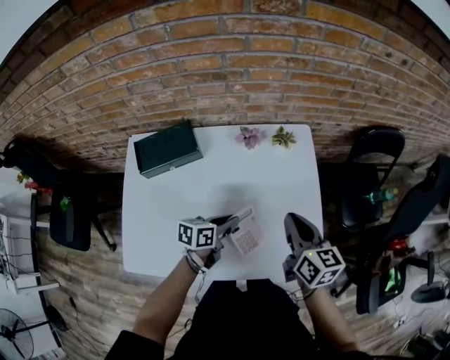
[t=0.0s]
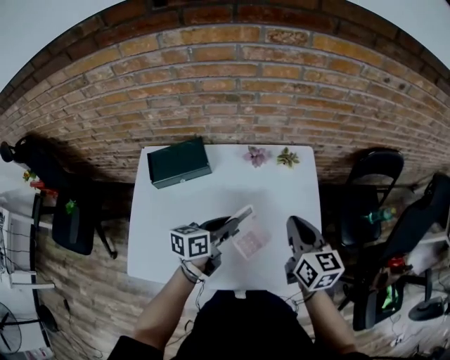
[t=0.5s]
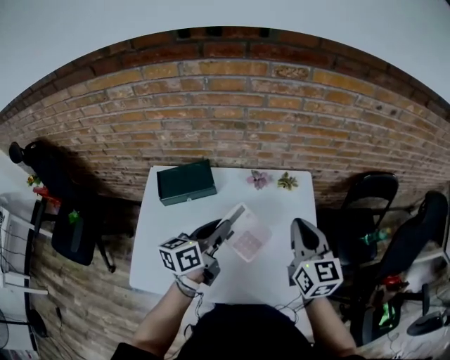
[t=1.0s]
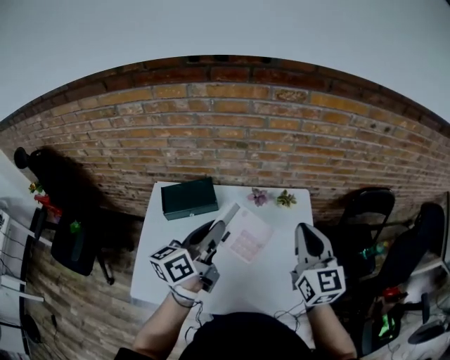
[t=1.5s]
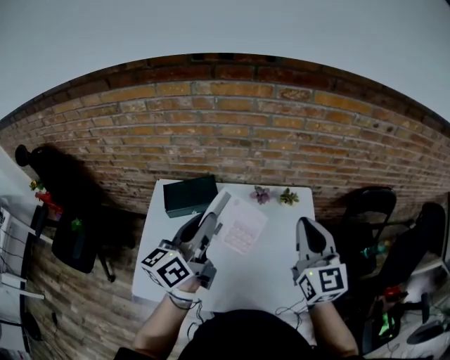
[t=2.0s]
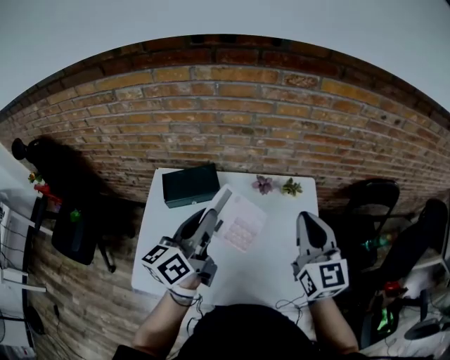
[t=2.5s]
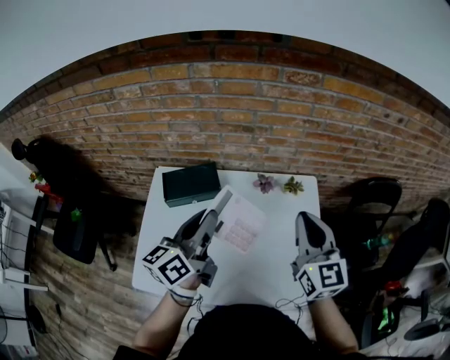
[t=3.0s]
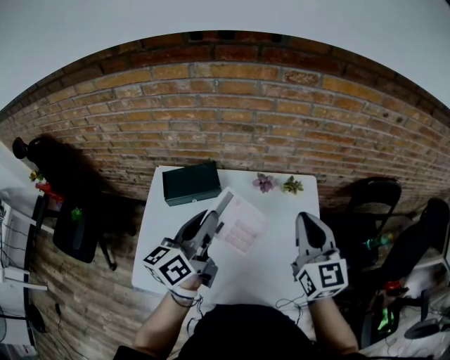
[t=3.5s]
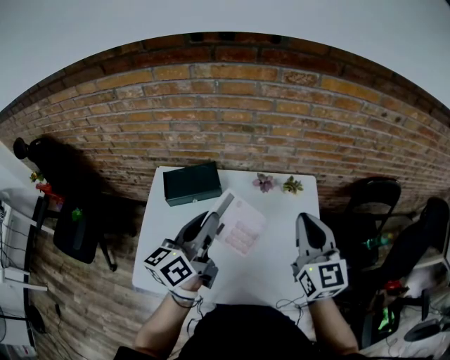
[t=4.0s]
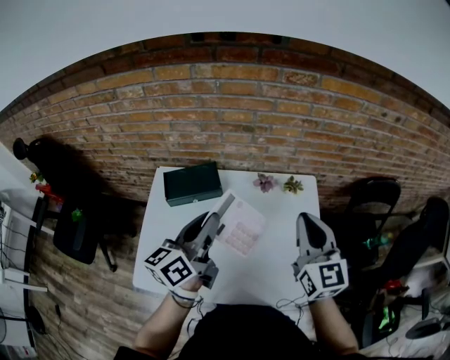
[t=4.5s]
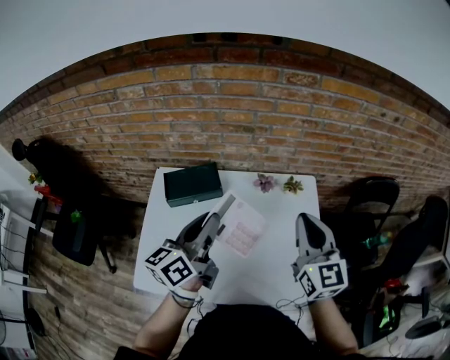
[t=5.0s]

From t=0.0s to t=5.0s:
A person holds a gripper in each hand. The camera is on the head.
From t=0.0s to t=2.5s: The right gripper moves upward, about 20 cm, and swivels some 30 degrees. The left gripper is displaced upward and to the left by roughly 35 cm, and tips its fingers upward by approximately 30 degrees.
From t=2.5s to t=5.0s: The grippers move only a little.

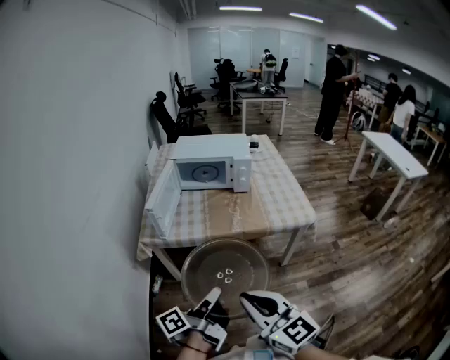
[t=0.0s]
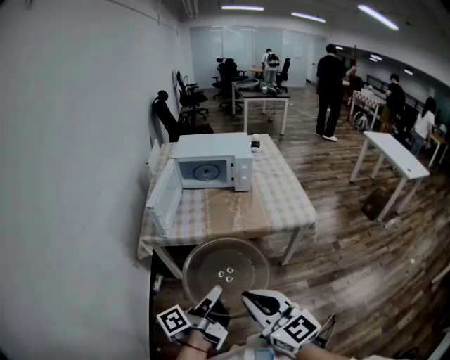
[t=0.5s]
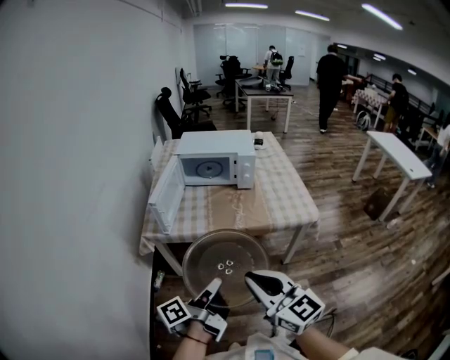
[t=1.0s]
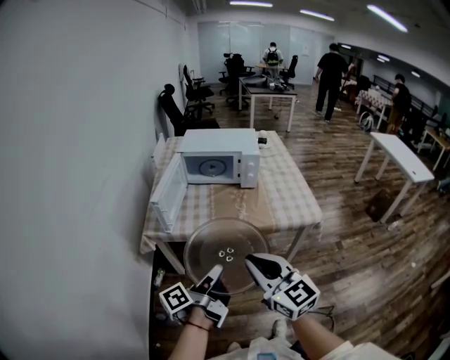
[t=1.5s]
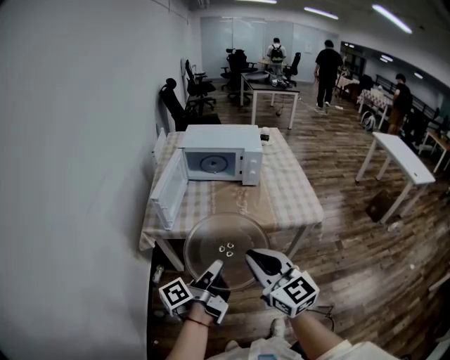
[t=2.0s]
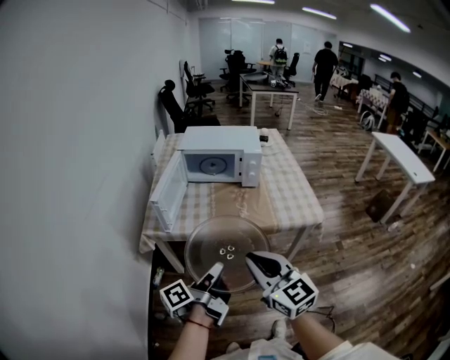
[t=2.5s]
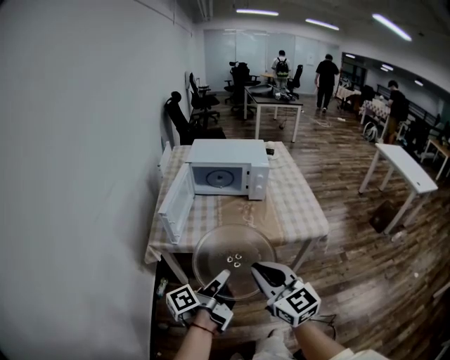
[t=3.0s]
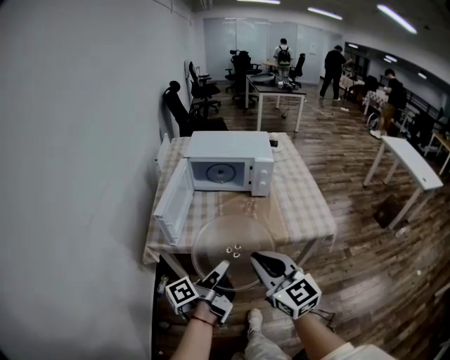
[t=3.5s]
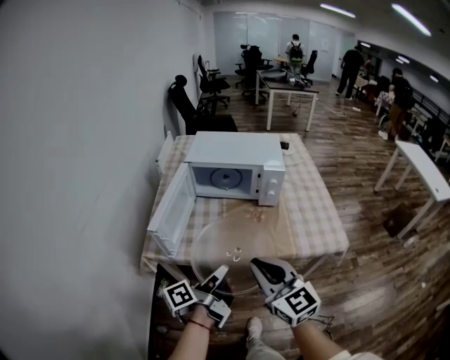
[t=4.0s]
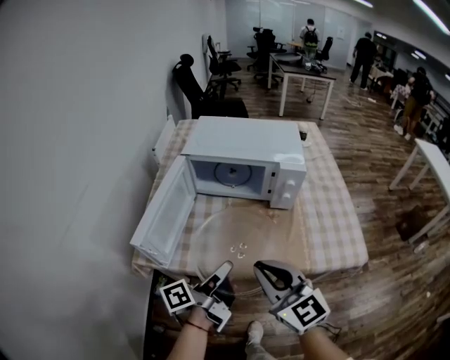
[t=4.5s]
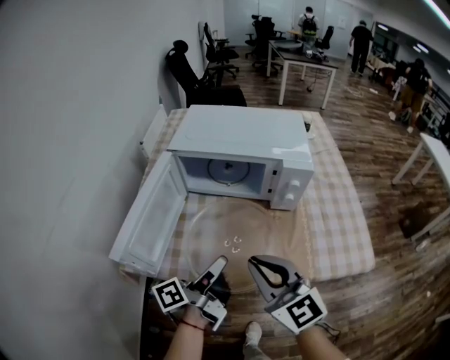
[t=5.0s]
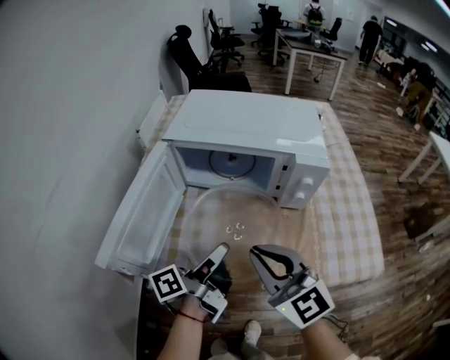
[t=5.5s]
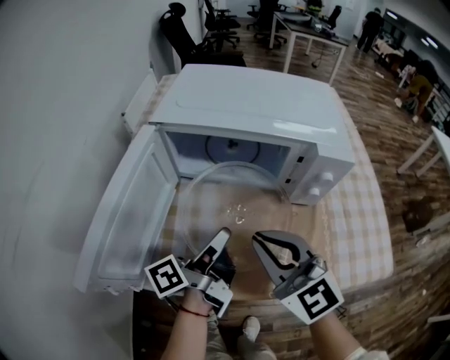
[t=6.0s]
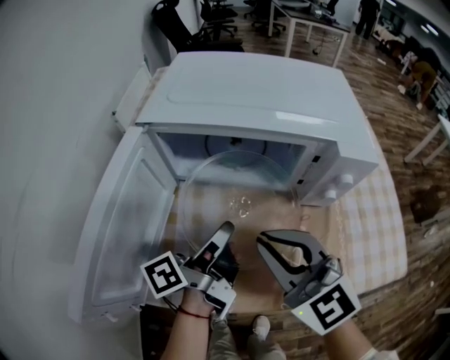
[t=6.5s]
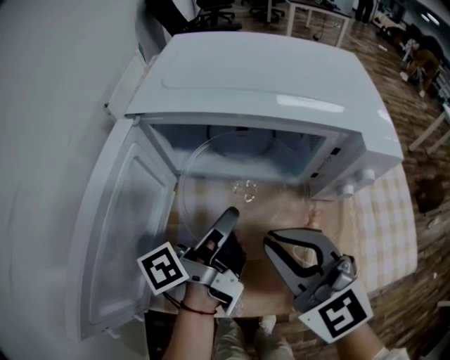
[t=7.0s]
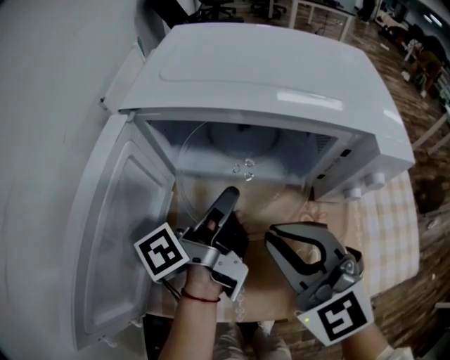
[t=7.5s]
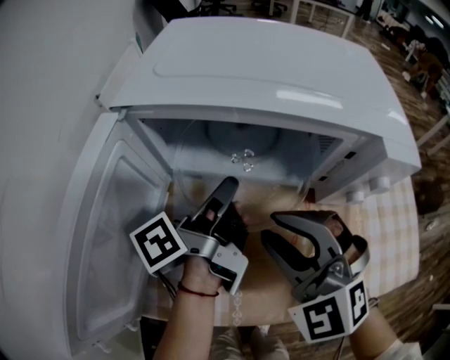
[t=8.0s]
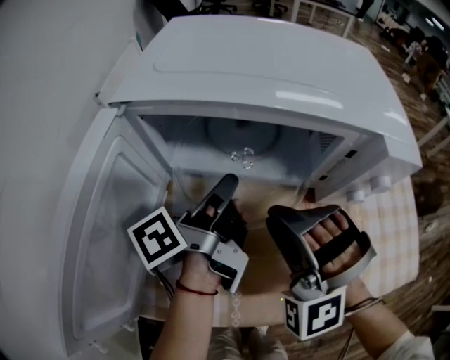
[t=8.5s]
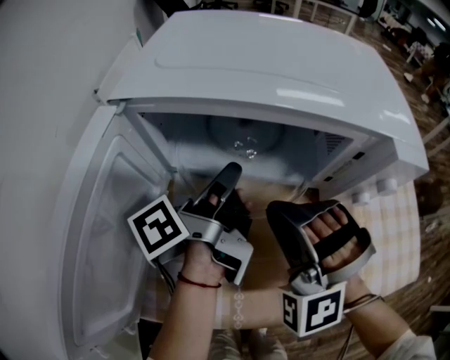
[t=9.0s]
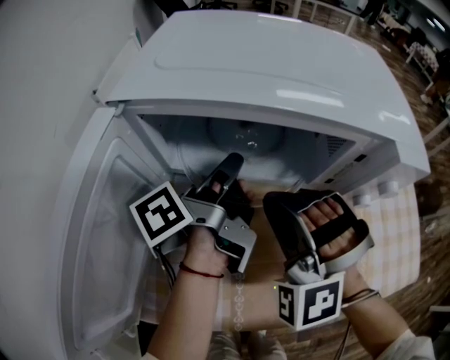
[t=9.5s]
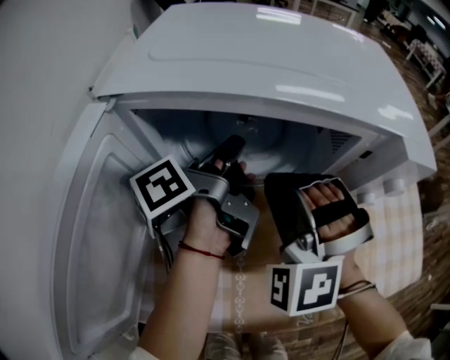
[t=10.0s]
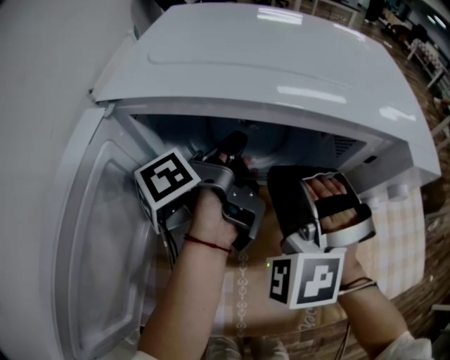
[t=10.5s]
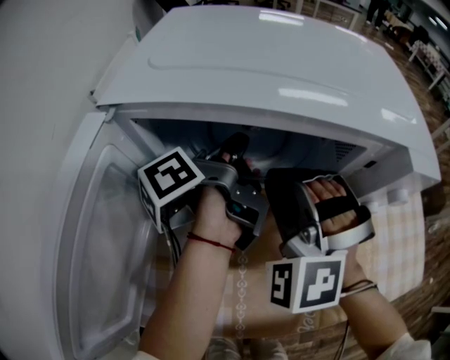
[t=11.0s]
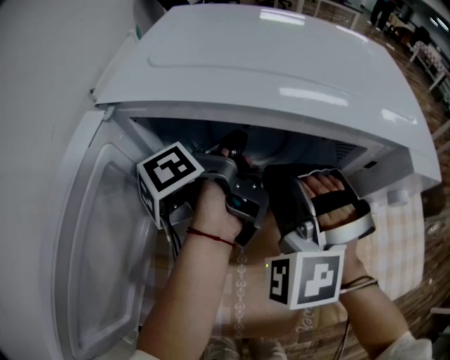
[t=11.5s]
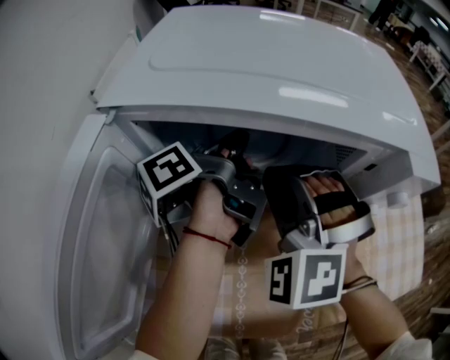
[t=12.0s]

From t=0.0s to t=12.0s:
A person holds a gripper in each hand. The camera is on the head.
From t=0.0s to t=2.0s: The grippers both shift forward by roughly 10 cm.
From t=2.0s to t=4.0s: Both grippers move forward, some 15 cm.
From t=4.0s to t=6.0s: The grippers both shift forward and downward by some 30 cm.
From t=6.0s to t=8.0s: The right gripper travels forward and downward by about 10 cm, rotates about 40 degrees, and opens. Meanwhile the left gripper heads forward, covering about 15 cm.
From t=8.0s to t=10.0s: Both grippers travel together forward, about 10 cm. The right gripper changes its angle by some 30 degrees.
From t=10.0s to t=12.0s: The grippers move only a little.

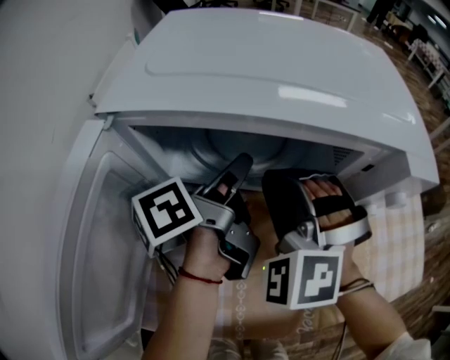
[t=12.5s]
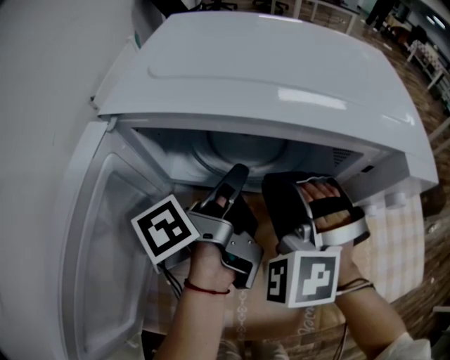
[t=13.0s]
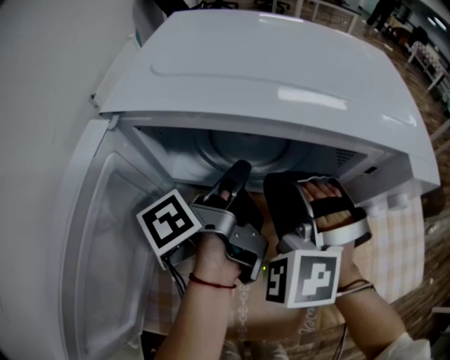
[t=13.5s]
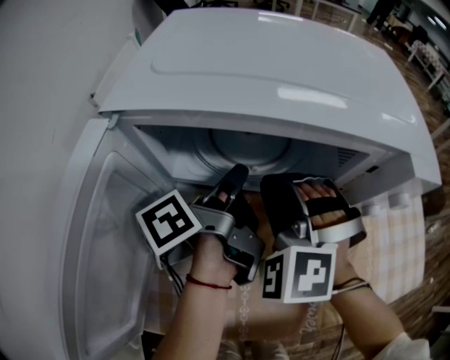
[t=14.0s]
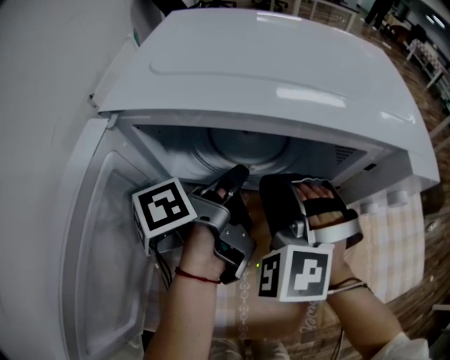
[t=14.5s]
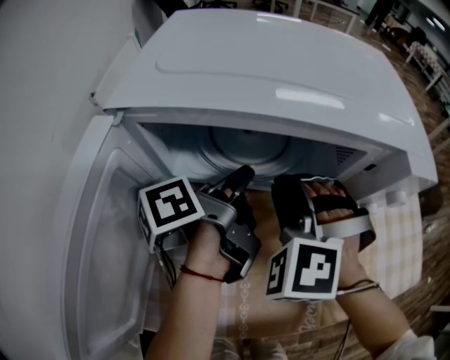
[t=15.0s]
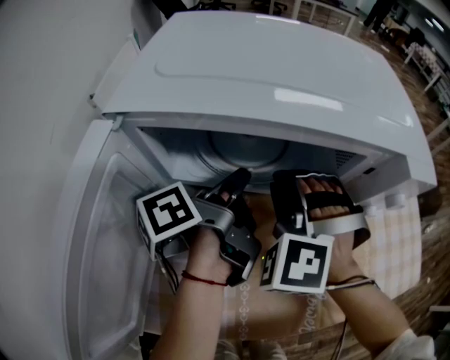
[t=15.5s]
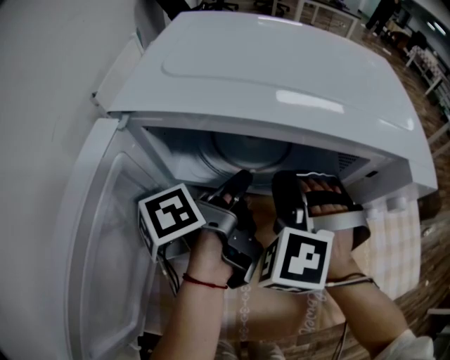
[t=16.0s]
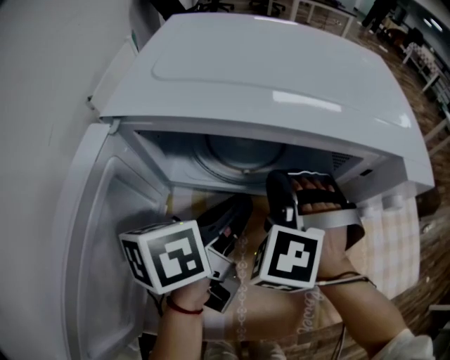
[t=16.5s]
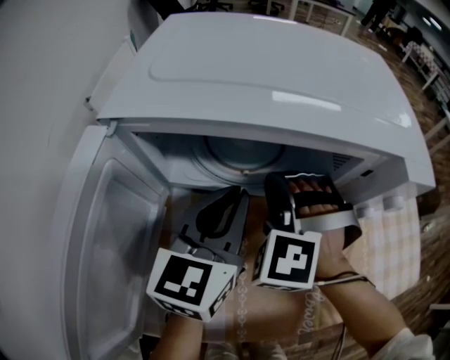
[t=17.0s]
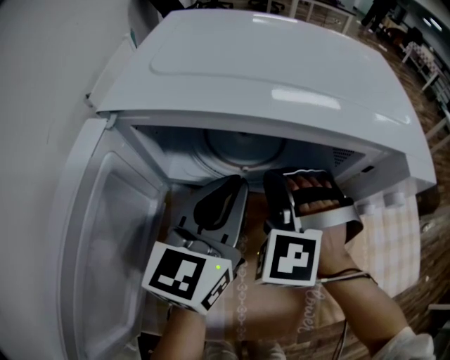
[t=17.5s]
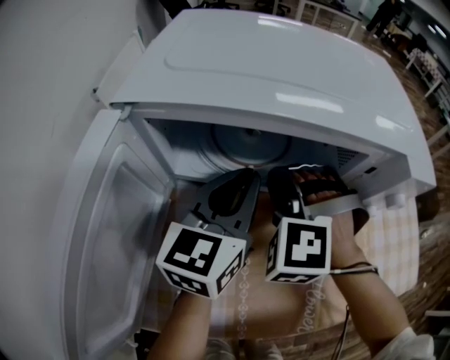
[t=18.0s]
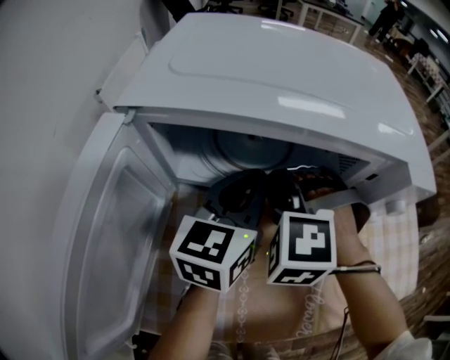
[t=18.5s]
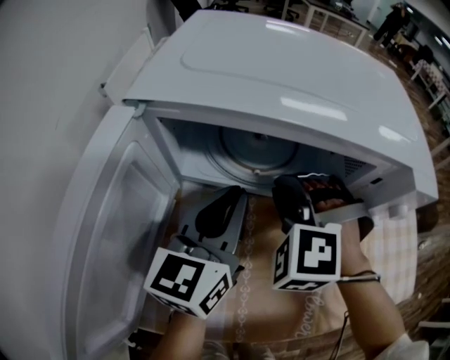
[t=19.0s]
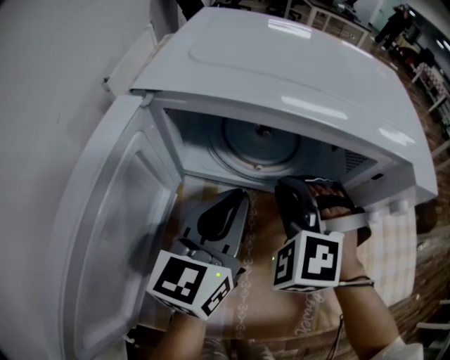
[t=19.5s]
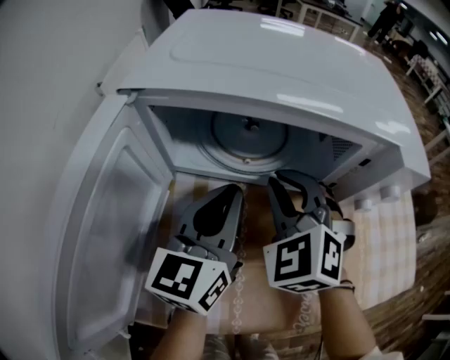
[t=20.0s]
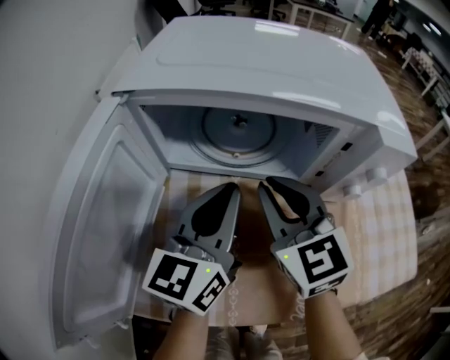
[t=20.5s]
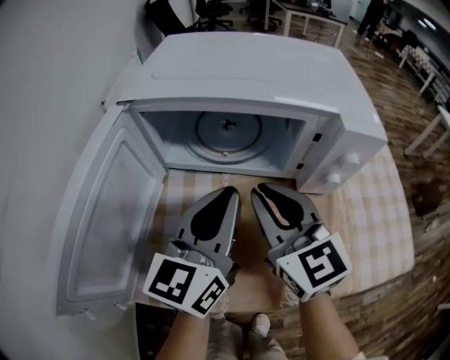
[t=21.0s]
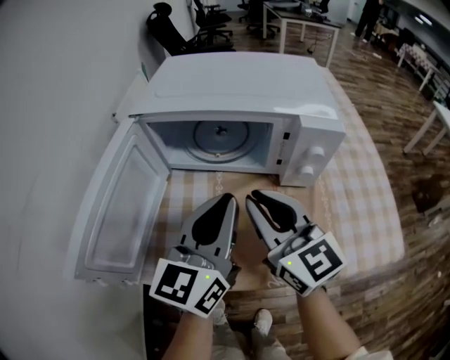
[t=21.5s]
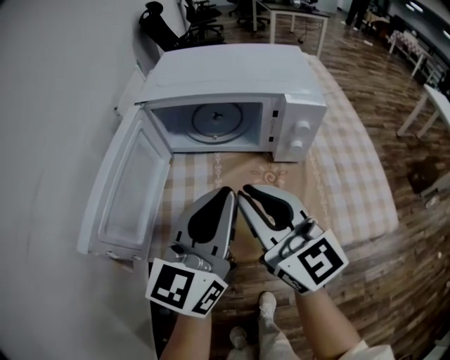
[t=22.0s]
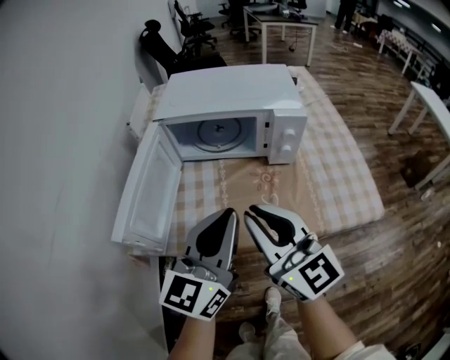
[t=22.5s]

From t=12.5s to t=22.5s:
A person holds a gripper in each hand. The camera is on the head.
From t=12.5s to t=14.5s: The left gripper closes.
From t=14.5s to t=16.5s: The left gripper changes place by approximately 5 cm, and swivels some 30 degrees.
From t=16.5s to t=18.5s: The left gripper turns by some 40 degrees.
From t=18.5s to t=20.5s: The left gripper shifts approximately 10 cm backward. The right gripper travels upward by roughly 5 cm, and twists roughly 60 degrees clockwise, seen from behind.
From t=20.5s to t=22.5s: Both grippers travel together backward and upward, some 30 cm. The right gripper changes its angle by approximately 30 degrees.
